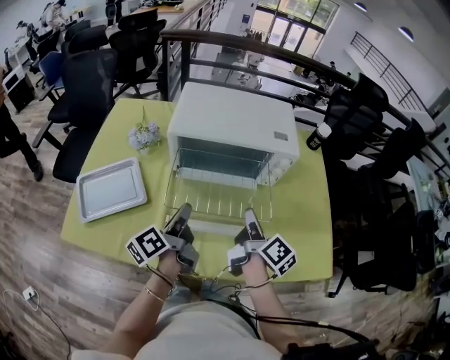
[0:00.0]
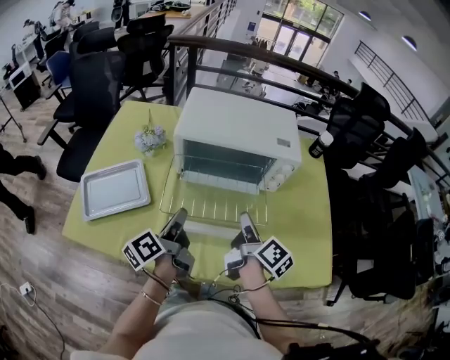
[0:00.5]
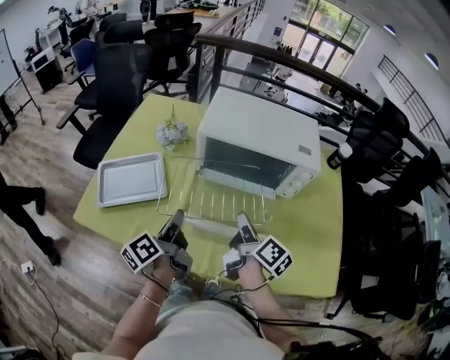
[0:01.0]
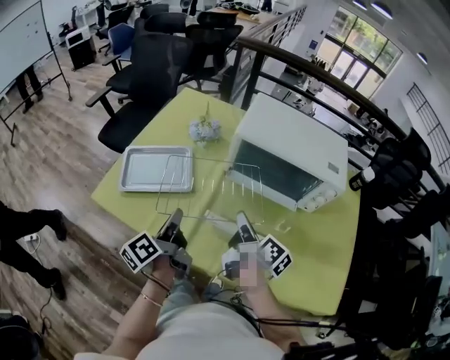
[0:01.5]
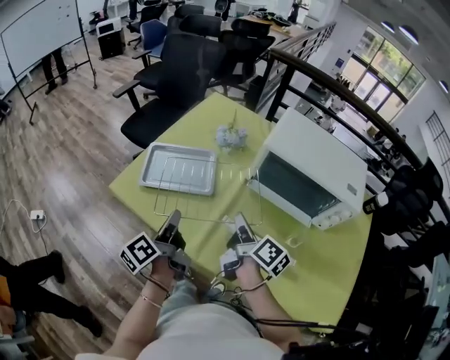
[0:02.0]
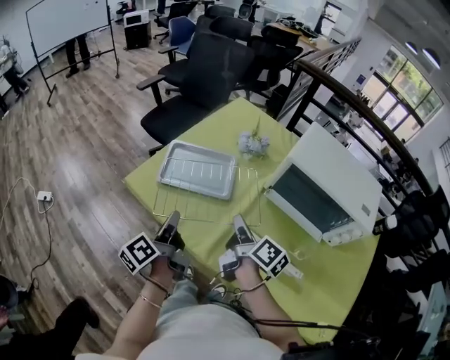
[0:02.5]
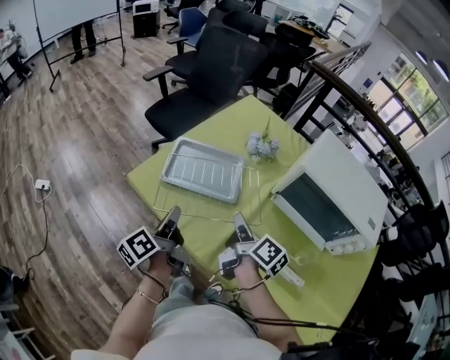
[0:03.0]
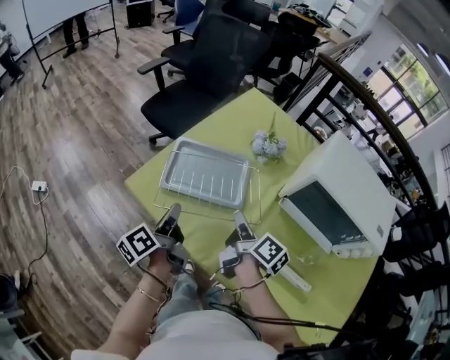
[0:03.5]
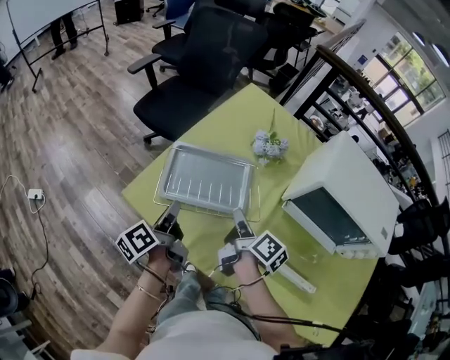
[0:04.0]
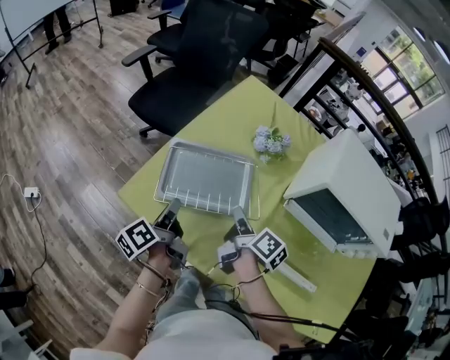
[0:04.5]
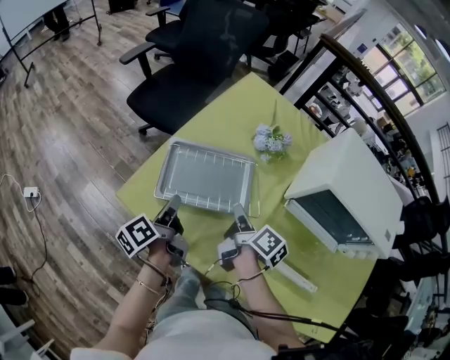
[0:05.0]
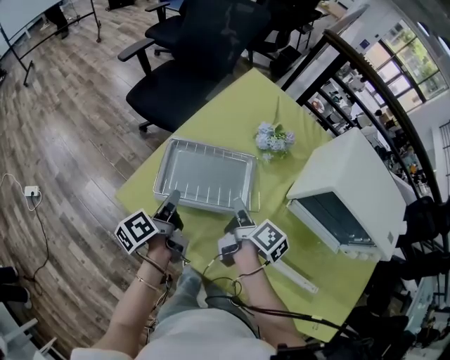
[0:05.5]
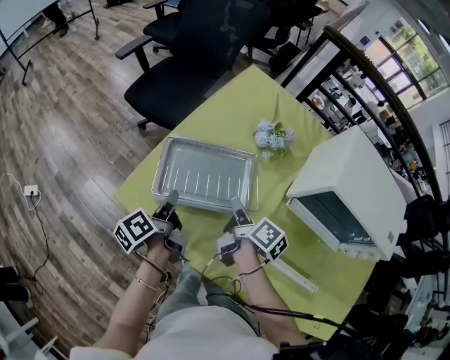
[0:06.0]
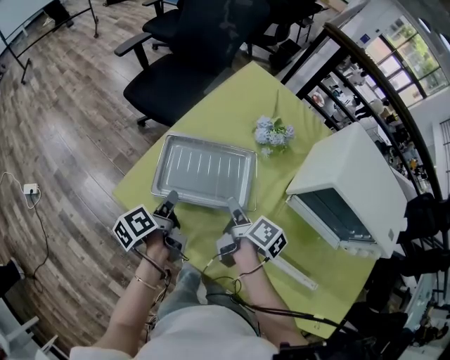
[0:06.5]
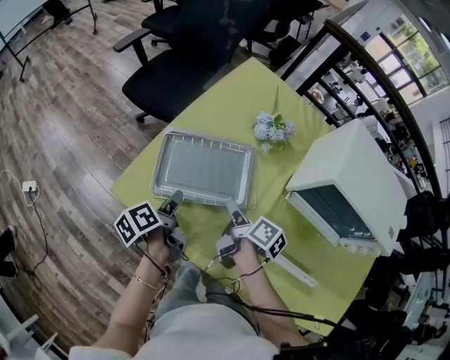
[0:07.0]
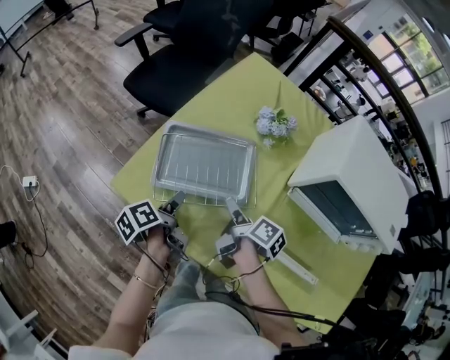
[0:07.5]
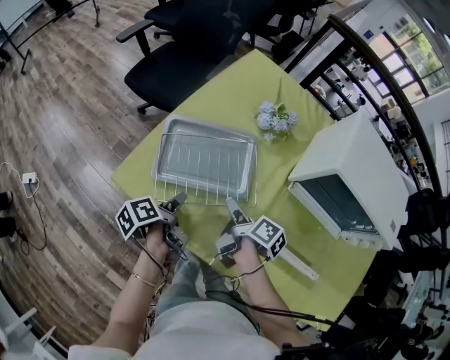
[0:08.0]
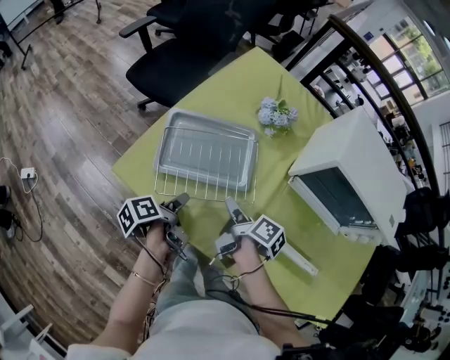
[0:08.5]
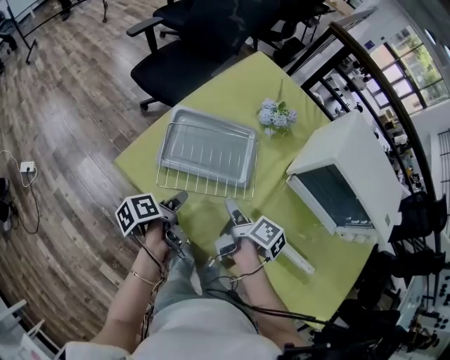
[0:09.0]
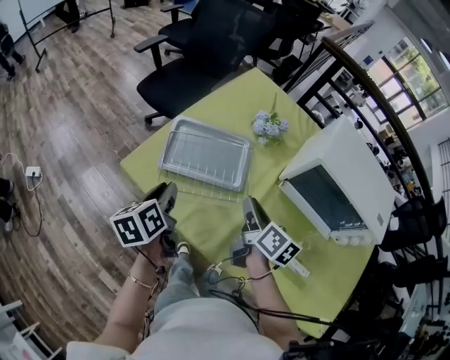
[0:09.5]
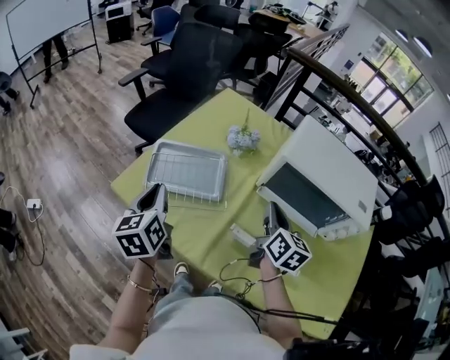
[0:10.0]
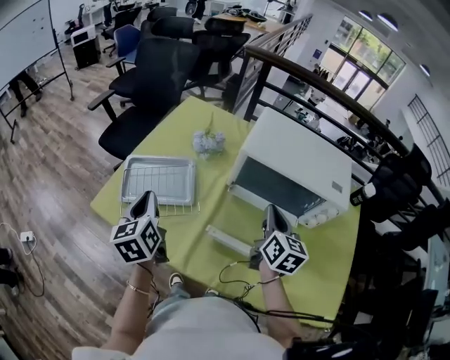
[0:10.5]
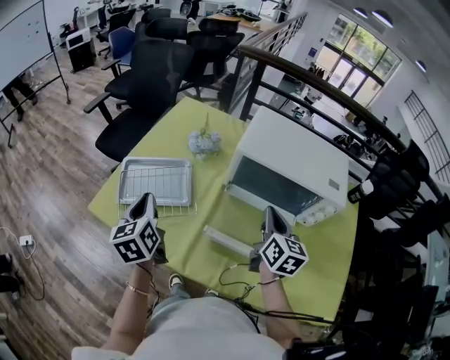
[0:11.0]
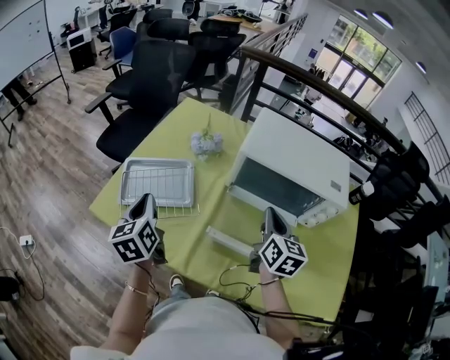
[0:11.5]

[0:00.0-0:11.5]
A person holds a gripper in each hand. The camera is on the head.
0:00.0 to 0:02.0: The left gripper changes place by approximately 25 cm, and rotates some 30 degrees. The right gripper changes place by approximately 25 cm, and swivels roughly 30 degrees.
0:02.0 to 0:04.0: The two grippers go approximately 20 cm forward, to the left and downward.
0:04.0 to 0:06.0: The right gripper ends up roughly 5 cm from where it was. The left gripper goes roughly 5 cm forward.
0:06.0 to 0:07.5: The left gripper shifts by roughly 5 cm, and opens up, while the right gripper shifts by approximately 5 cm, and opens.
0:07.5 to 0:09.5: The left gripper travels upward and backward by approximately 15 cm, and rotates some 40 degrees; the right gripper heads upward, covering about 10 cm, changes its angle by roughly 30 degrees, and closes up.
0:09.5 to 0:11.5: The right gripper travels to the right by approximately 20 cm, turns by some 30 degrees, and closes up, while the left gripper travels to the right and upward by roughly 15 cm, and swivels roughly 20 degrees.

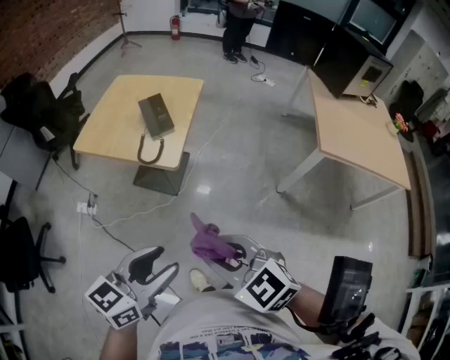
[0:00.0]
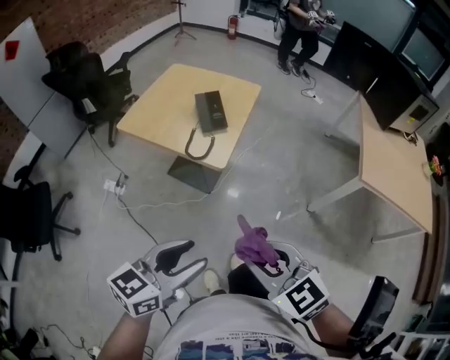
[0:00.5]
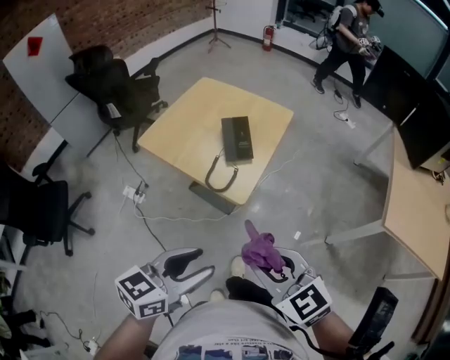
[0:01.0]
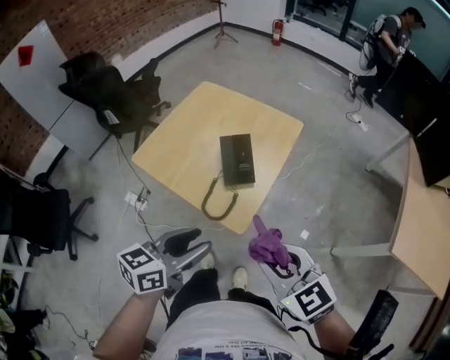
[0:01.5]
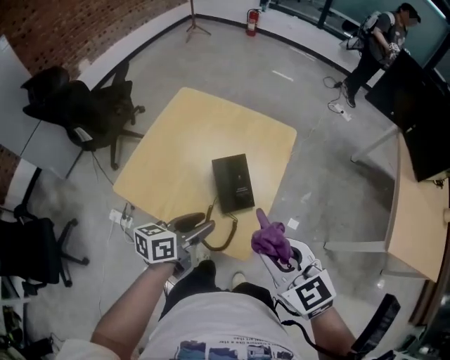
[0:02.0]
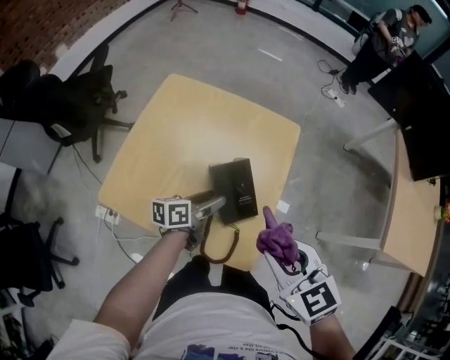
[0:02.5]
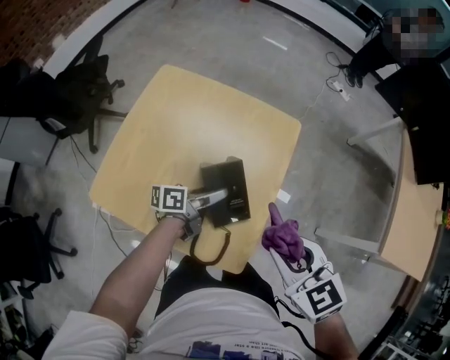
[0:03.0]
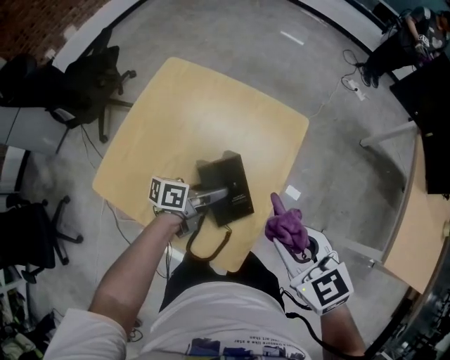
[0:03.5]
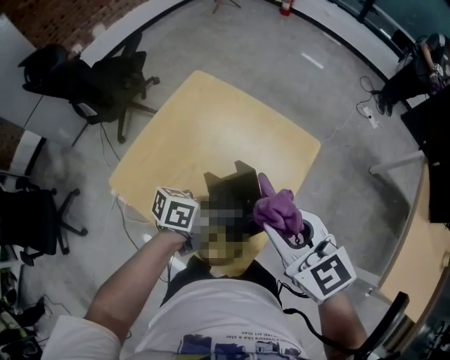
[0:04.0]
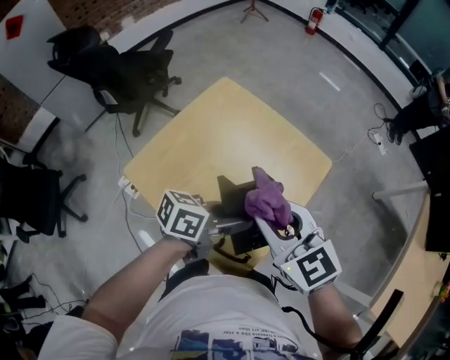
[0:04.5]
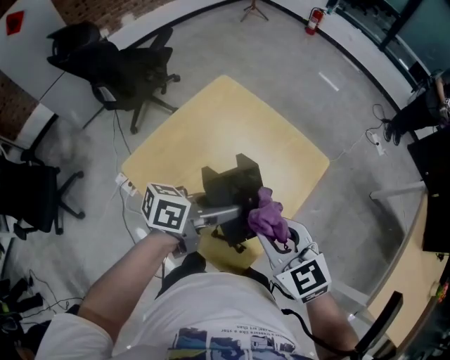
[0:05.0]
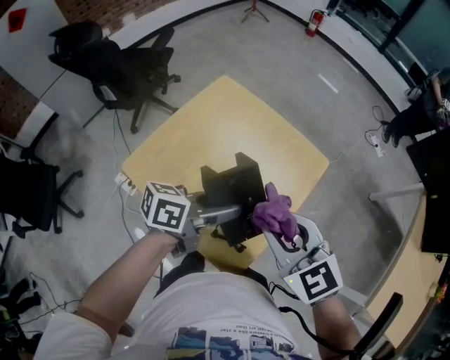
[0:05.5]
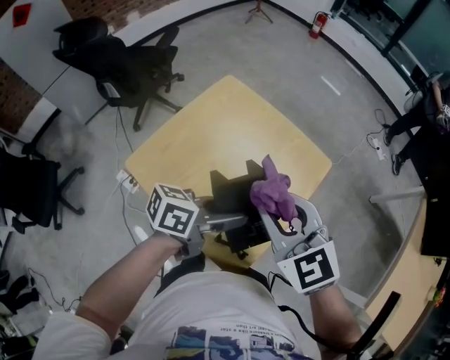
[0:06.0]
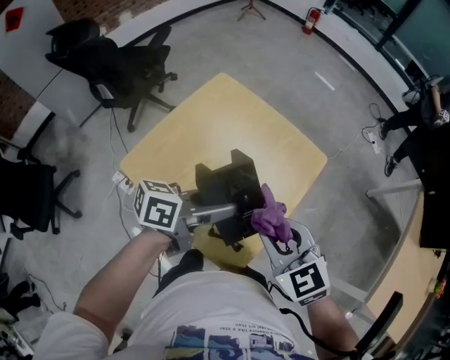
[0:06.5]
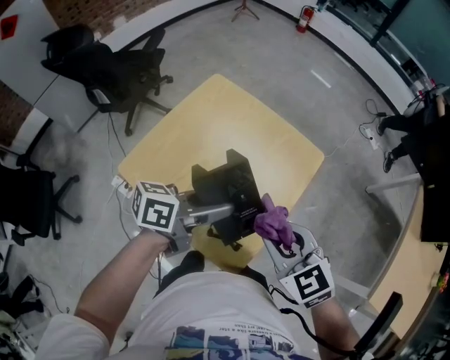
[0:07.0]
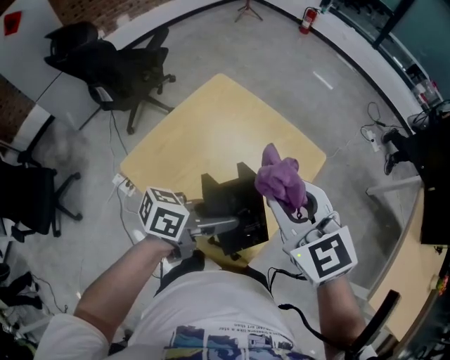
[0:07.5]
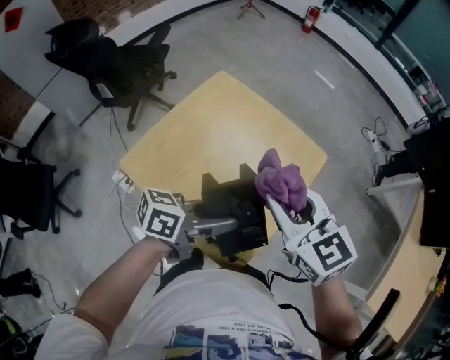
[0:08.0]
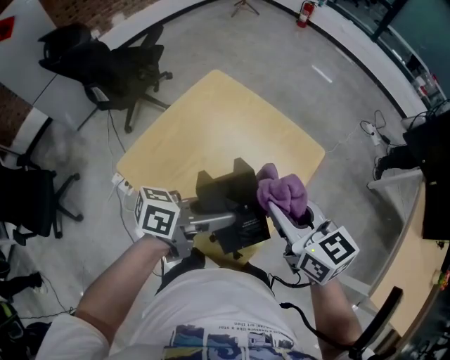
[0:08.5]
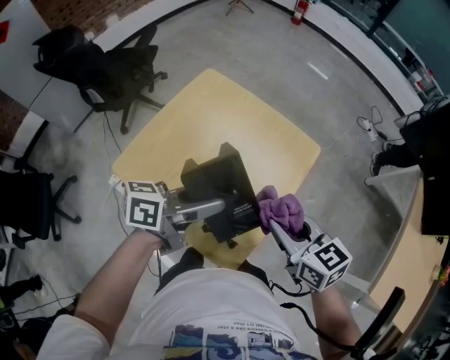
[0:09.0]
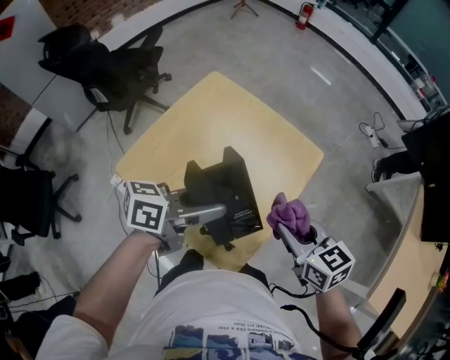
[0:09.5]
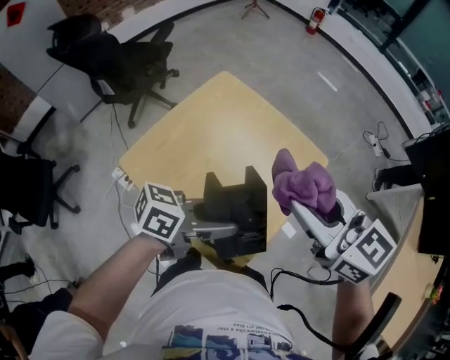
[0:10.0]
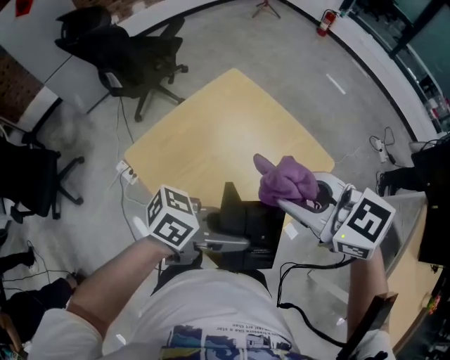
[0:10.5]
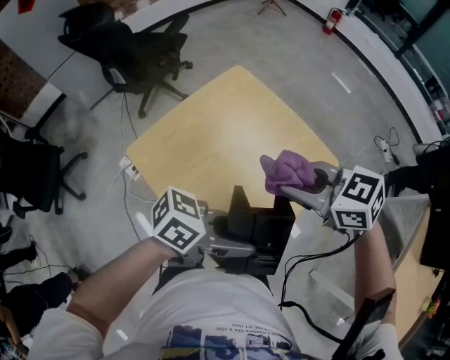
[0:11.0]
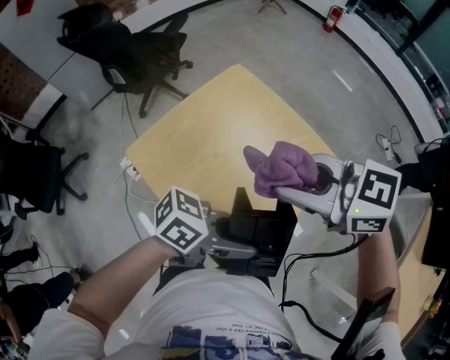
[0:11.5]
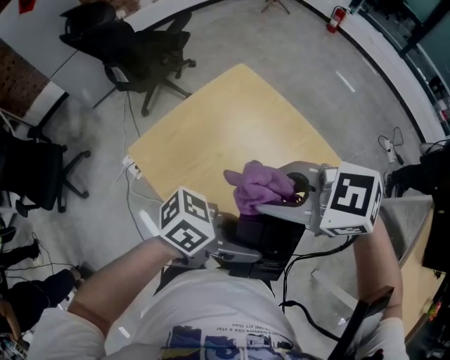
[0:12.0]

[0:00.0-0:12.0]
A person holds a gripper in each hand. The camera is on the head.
0:00.0 to 0:02.0: Both grippers travel together forward, roughly 35 cm. The left gripper turns by some 30 degrees.
0:02.0 to 0:04.0: The left gripper is displaced forward and to the right by some 10 cm. The right gripper heads forward, covering about 15 cm.
0:04.0 to 0:06.0: The right gripper is displaced to the left by roughly 5 cm. Meanwhile the left gripper heads upward, covering roughly 10 cm.
0:06.0 to 0:08.0: The right gripper travels downward and back again, approximately 5 cm each way.
0:08.0 to 0:10.0: The right gripper shifts roughly 5 cm upward.
0:10.0 to 0:12.0: The left gripper ends up approximately 5 cm from where it was. The right gripper moves some 10 cm, and swivels roughly 50 degrees.

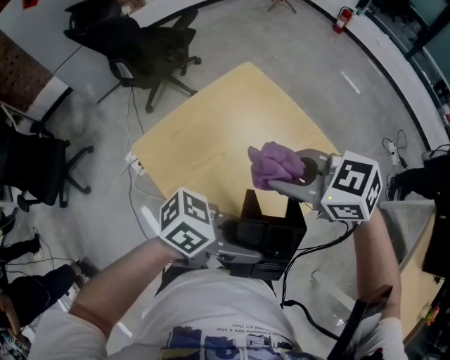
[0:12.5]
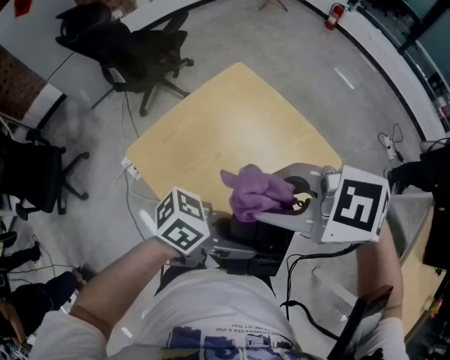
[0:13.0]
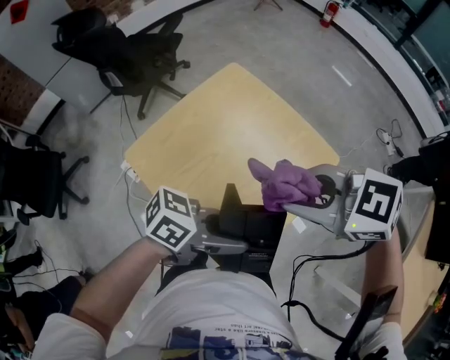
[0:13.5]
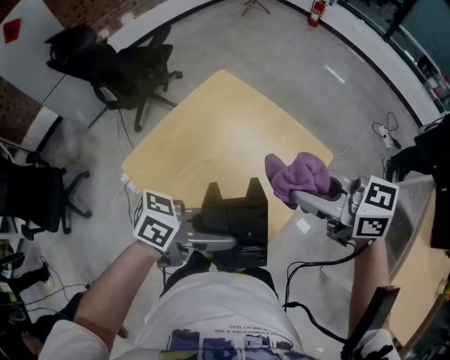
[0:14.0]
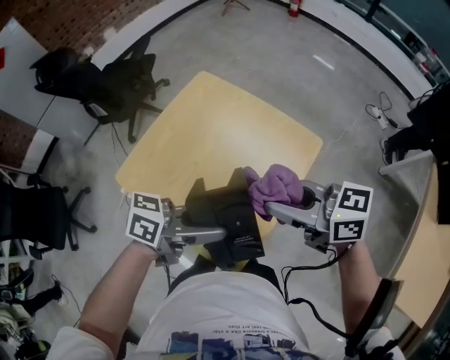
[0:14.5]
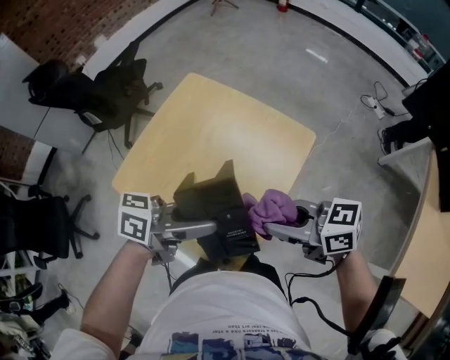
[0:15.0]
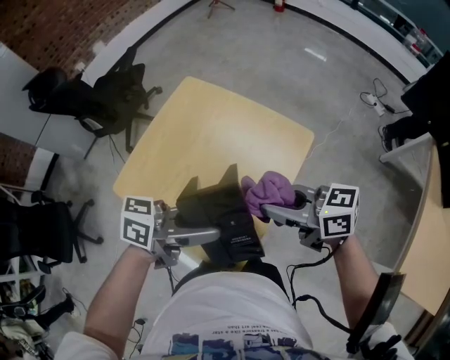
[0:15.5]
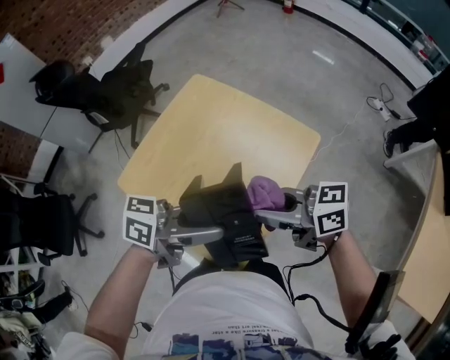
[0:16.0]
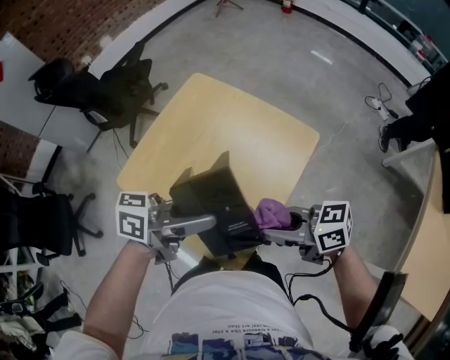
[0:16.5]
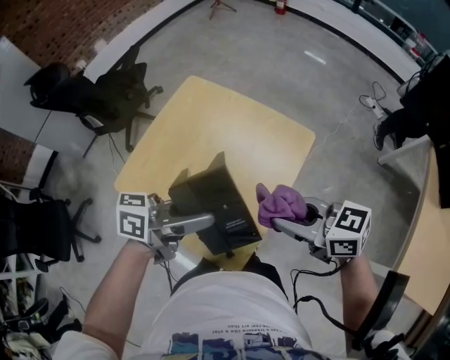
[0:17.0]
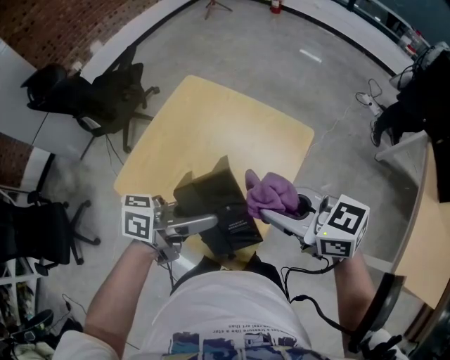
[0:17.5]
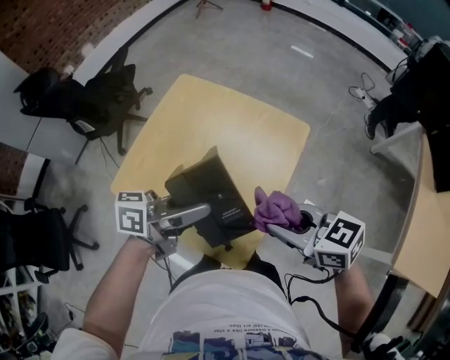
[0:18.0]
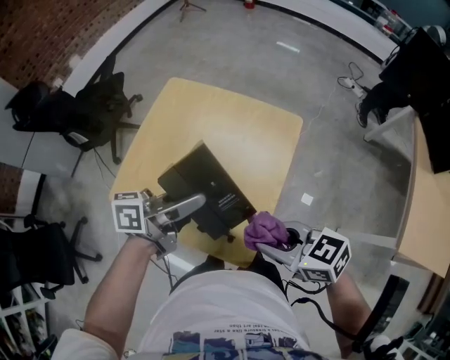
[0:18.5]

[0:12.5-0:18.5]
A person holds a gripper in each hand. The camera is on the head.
0:12.5 to 0:14.5: The right gripper changes place by about 10 cm, and rotates about 40 degrees. The left gripper changes place by about 5 cm.
0:14.5 to 0:16.5: The right gripper moves downward, some 10 cm.
0:16.5 to 0:18.5: The left gripper changes place by some 5 cm, while the right gripper turns by some 30 degrees.
